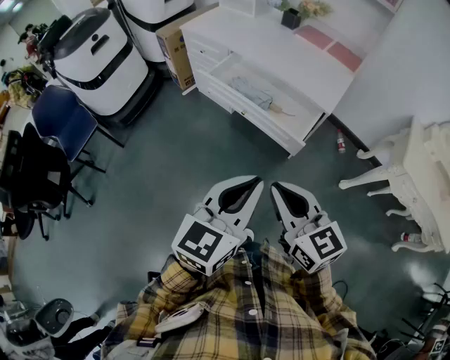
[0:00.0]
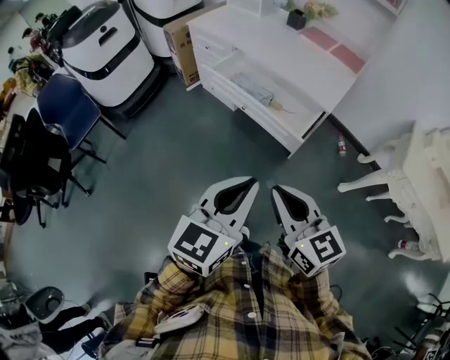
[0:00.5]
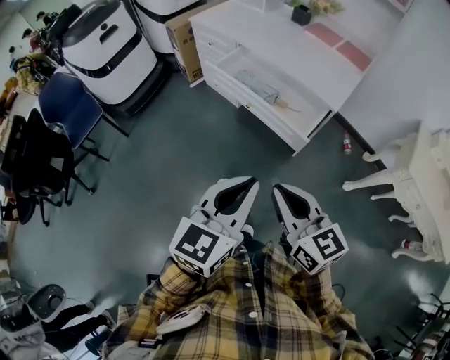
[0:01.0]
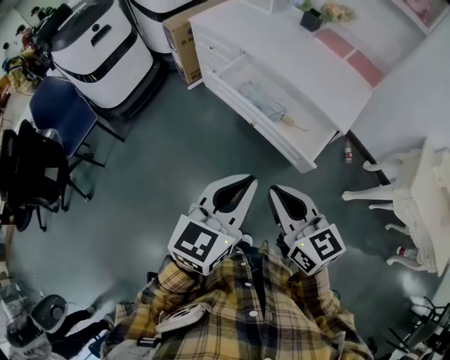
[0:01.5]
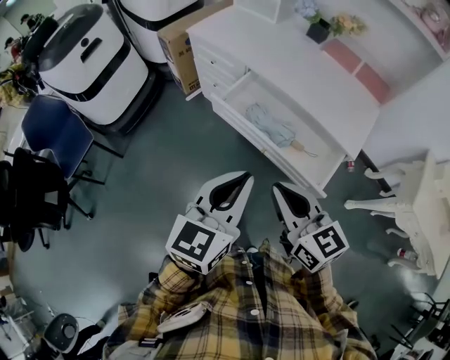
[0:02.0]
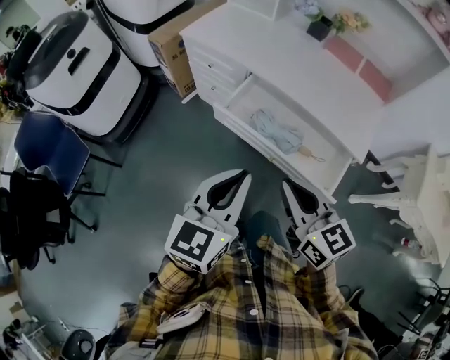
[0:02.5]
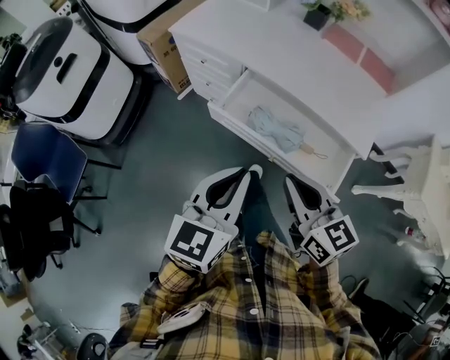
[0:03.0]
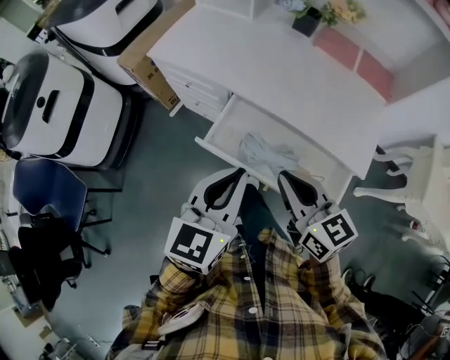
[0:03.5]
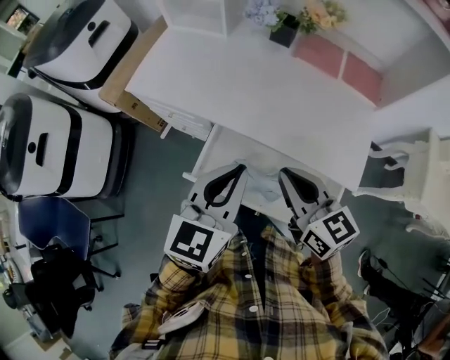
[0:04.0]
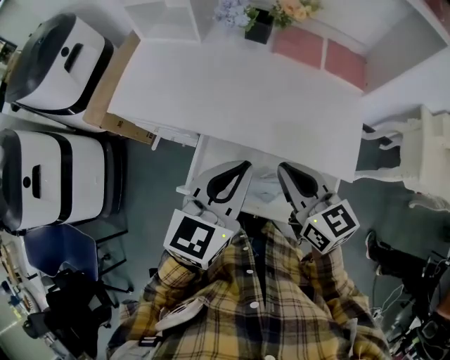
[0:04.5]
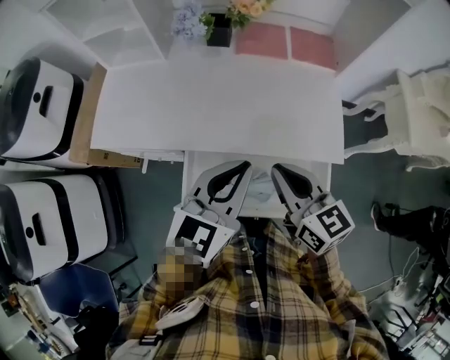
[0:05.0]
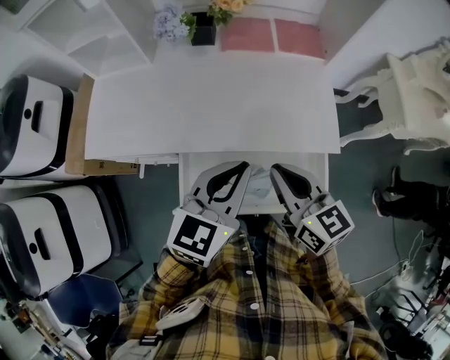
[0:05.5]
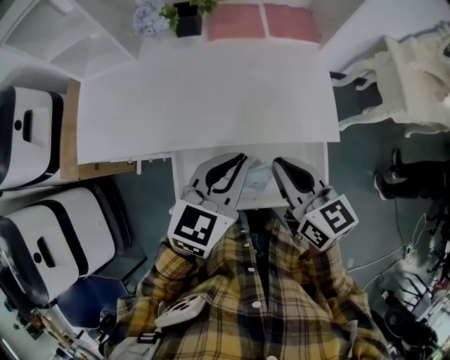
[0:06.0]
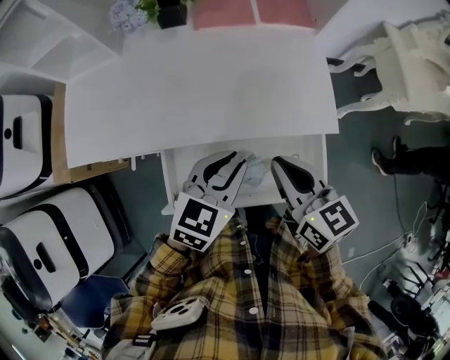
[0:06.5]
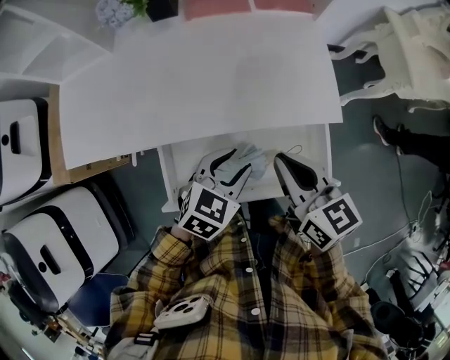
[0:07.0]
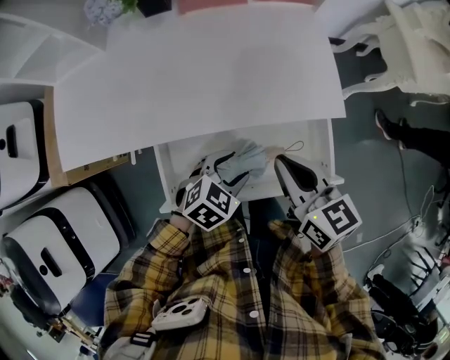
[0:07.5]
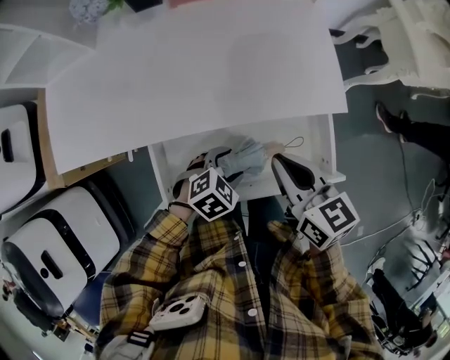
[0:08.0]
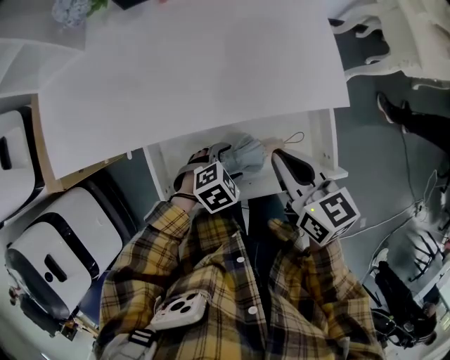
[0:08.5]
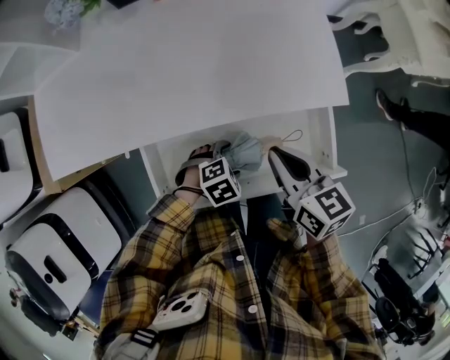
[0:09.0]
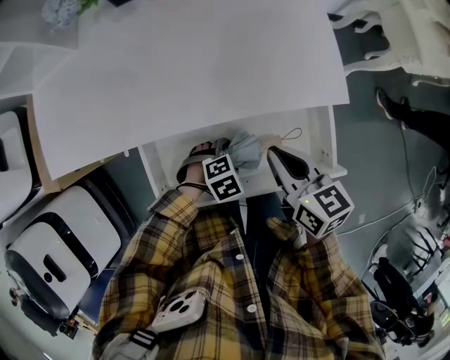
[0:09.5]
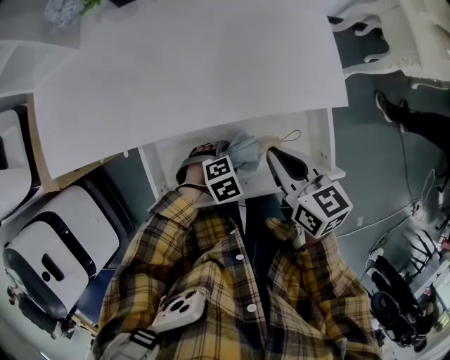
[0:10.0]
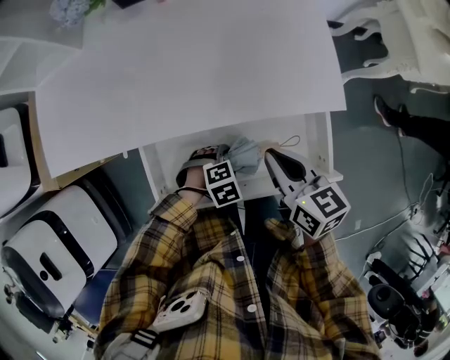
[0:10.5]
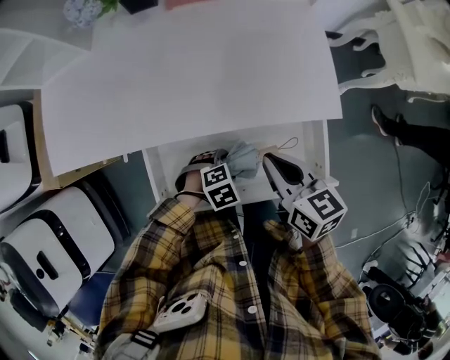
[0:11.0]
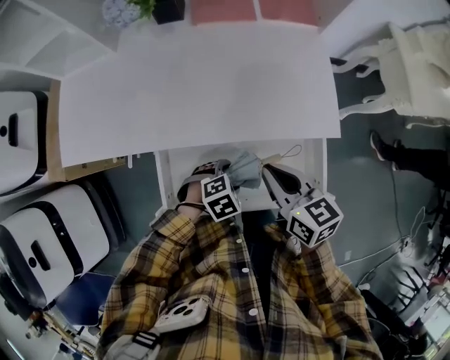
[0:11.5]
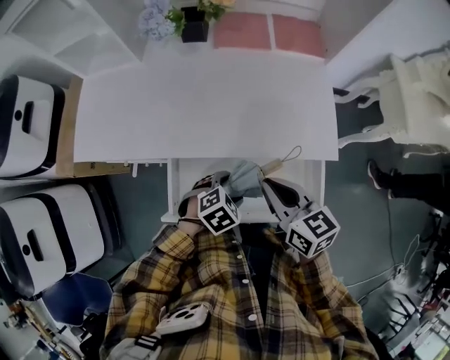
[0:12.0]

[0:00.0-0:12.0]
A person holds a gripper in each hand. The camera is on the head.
0:00.0 to 0:02.0: The left gripper goes roughly 25 cm forward and to the left, while the right gripper moves forward, some 20 cm.
0:02.0 to 0:04.0: The grippers both shift forward by about 30 cm.
0:04.0 to 0:06.0: The left gripper shifts by roughly 10 cm, and turns by about 30 degrees. Meanwhile the right gripper shifts by approximately 10 cm, and turns by some 30 degrees.
0:06.0 to 0:08.0: The right gripper is displaced downward by some 10 cm; the left gripper shifts approximately 25 cm downward, points its fingers approximately 40 degrees further downward, and opens its fingers.
0:08.0 to 0:10.0: The left gripper travels downward by approximately 10 cm, and swivels approximately 20 degrees. The right gripper is displaced downward by roughly 5 cm.
0:10.0 to 0:12.0: The right gripper travels upward by about 10 cm. The left gripper is displaced upward by about 15 cm, and rotates roughly 30 degrees.

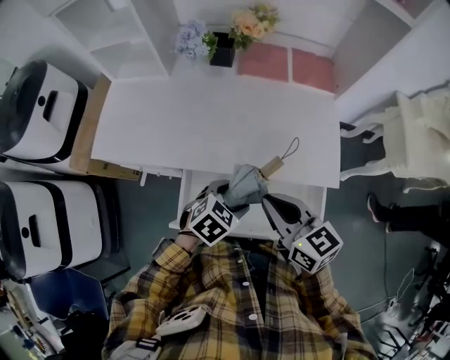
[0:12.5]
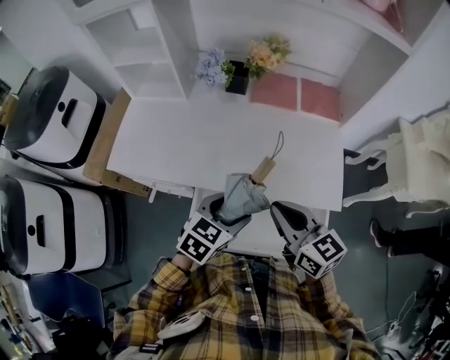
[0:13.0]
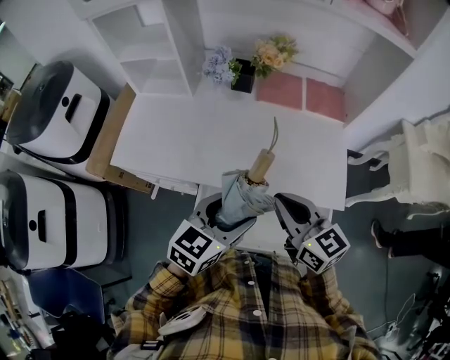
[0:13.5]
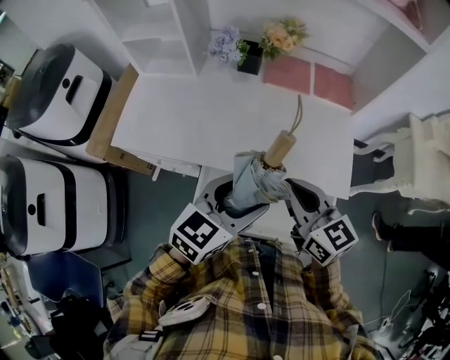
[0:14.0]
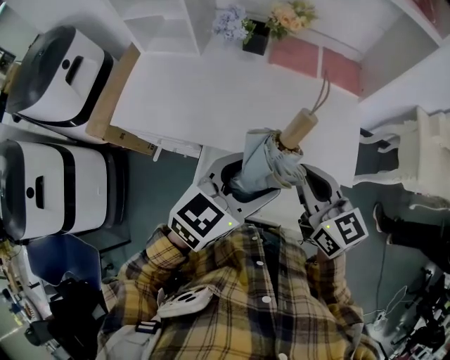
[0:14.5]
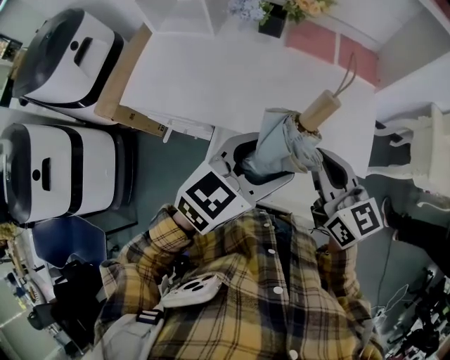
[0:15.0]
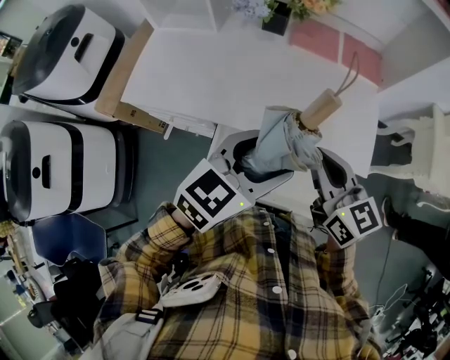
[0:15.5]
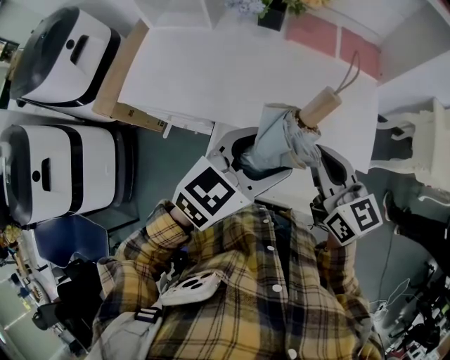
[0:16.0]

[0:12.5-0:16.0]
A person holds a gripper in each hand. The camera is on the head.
0:12.5 to 0:14.5: The left gripper is displaced upward by some 20 cm, and points its fingers approximately 30 degrees further upward. The right gripper moves about 5 cm.
0:14.5 to 0:16.0: The two grippers keep their place.

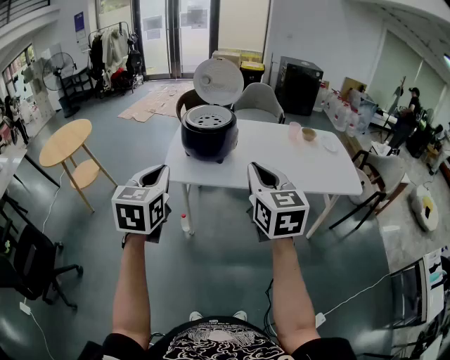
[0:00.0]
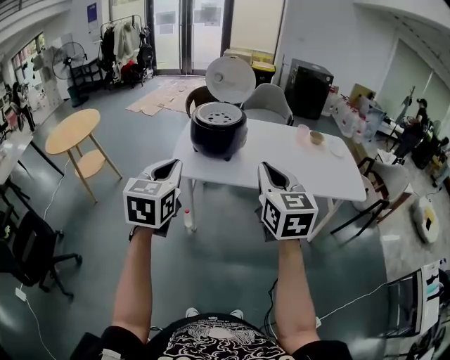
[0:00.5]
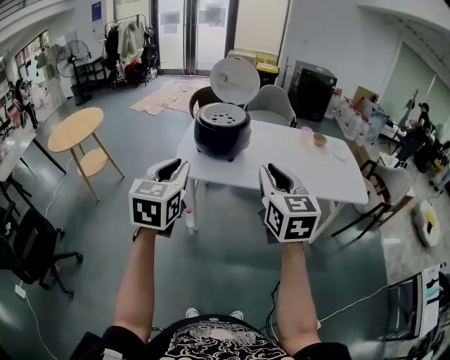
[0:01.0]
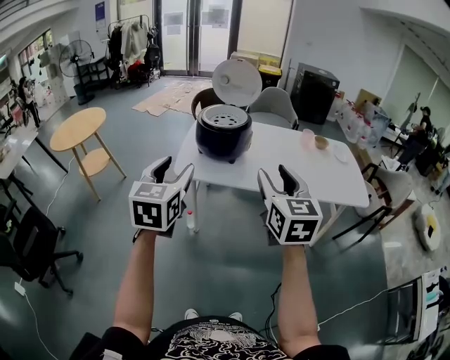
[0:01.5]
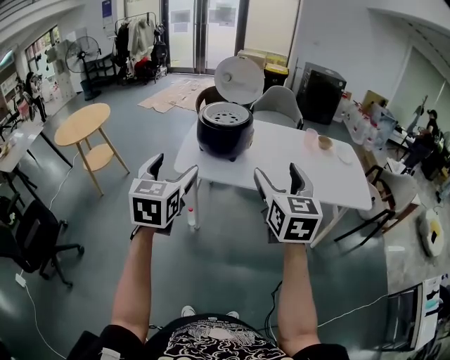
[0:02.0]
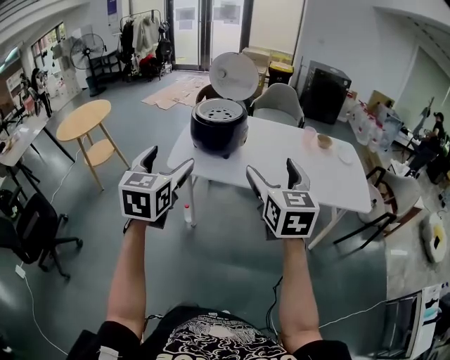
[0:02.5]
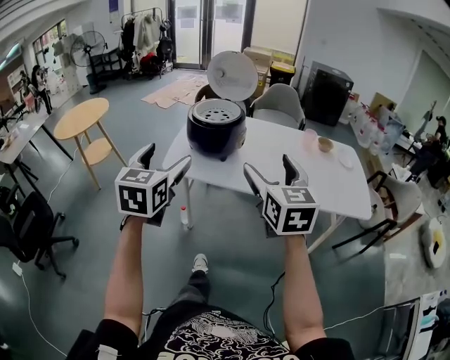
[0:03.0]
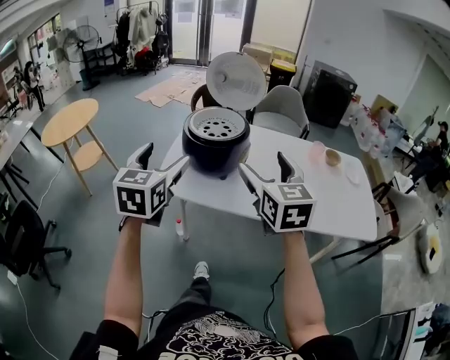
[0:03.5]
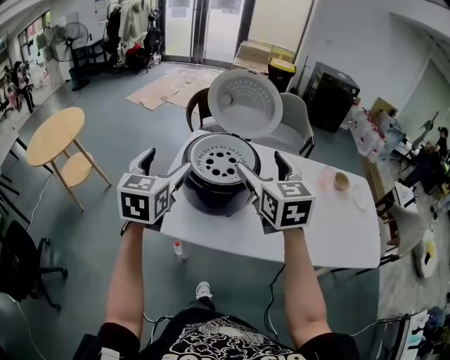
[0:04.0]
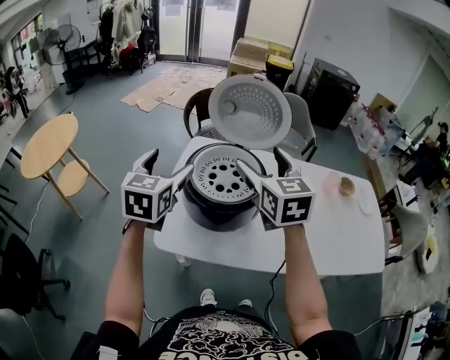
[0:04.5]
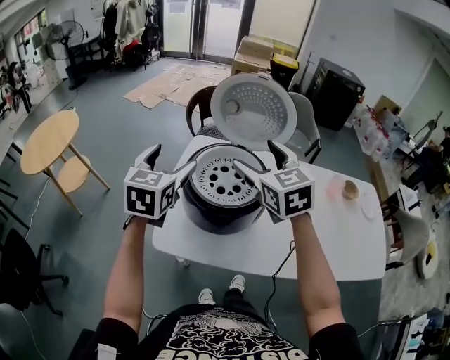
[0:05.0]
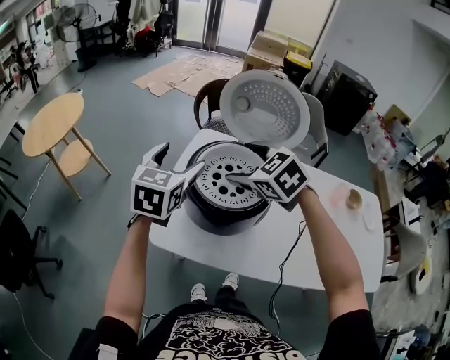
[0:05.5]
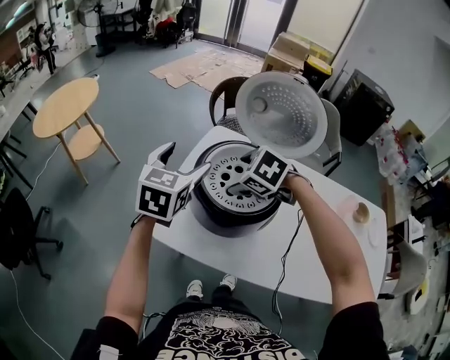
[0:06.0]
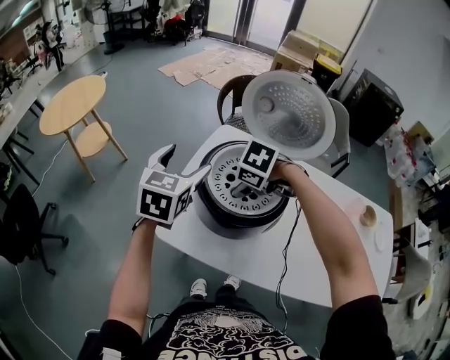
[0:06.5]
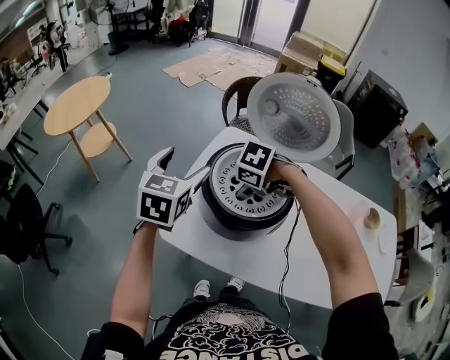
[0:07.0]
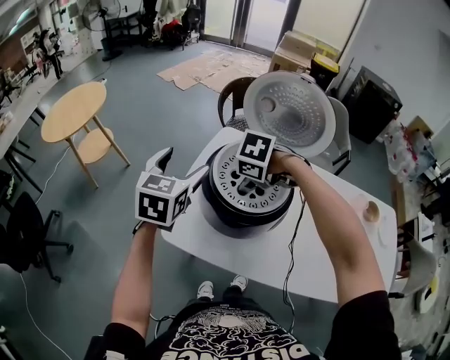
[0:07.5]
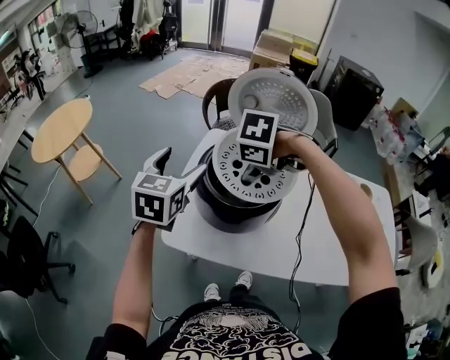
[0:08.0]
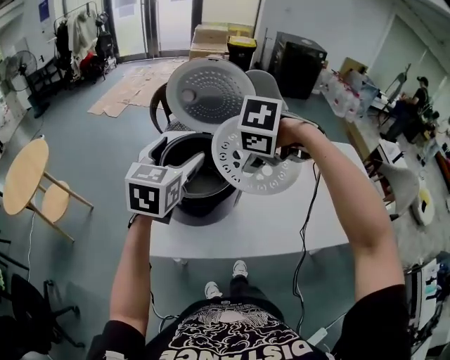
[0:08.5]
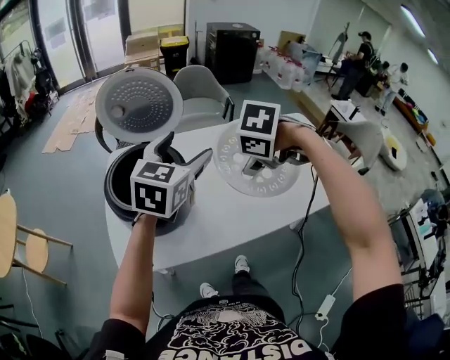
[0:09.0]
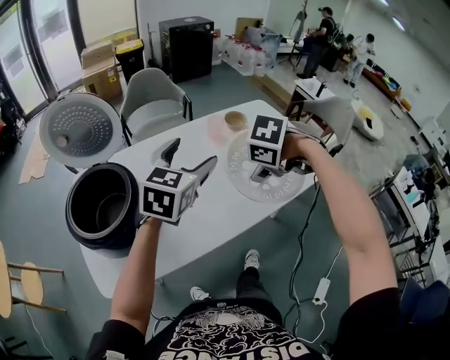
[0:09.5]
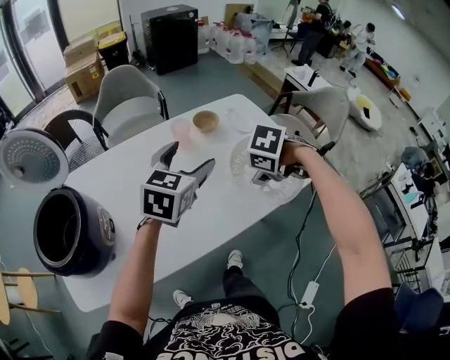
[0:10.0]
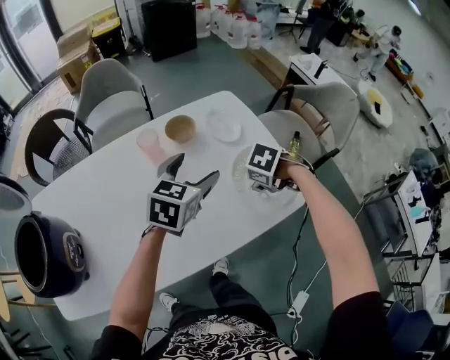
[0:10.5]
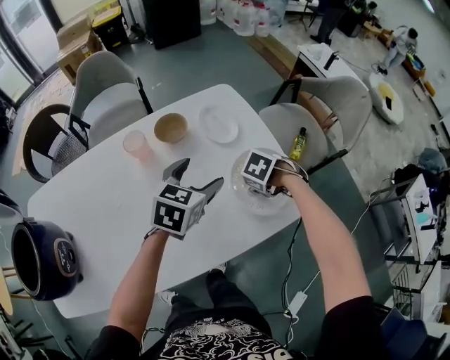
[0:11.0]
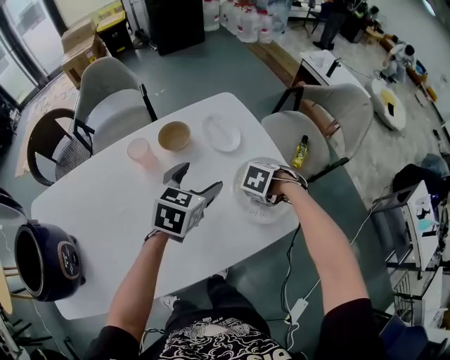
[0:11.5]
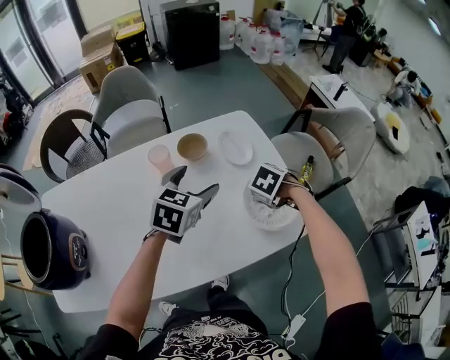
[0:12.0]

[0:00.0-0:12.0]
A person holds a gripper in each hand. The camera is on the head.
0:00.0 to 0:02.0: The right gripper opens up. The left gripper opens.
0:02.0 to 0:04.0: Both grippers are carried forward, about 60 cm.
0:04.0 to 0:06.0: The right gripper travels forward, downward and to the left by about 30 cm, and tilts its fingers roughly 50 degrees downward, while the left gripper is displaced forward and downward by about 20 cm.
0:06.0 to 0:08.0: The right gripper moves upward, roughly 5 cm, and swivels roughly 20 degrees; the left gripper moves about 5 cm.
0:08.0 to 0:10.0: The two grippers travel together, roughly 80 cm. The left gripper turns by approximately 50 degrees; the right gripper twists about 50 degrees clockwise, seen from behind.
0:10.0 to 0:12.0: The right gripper moves some 35 cm, while the left gripper moves roughly 35 cm.
